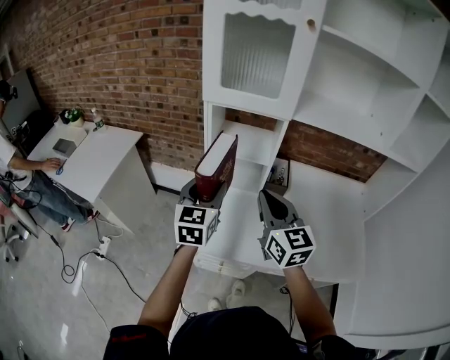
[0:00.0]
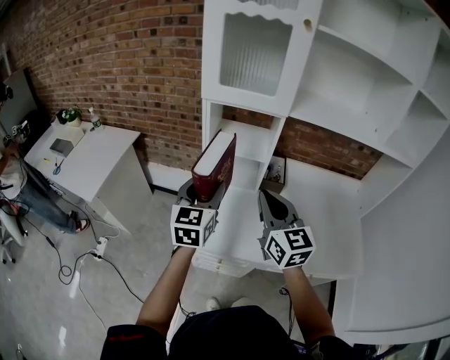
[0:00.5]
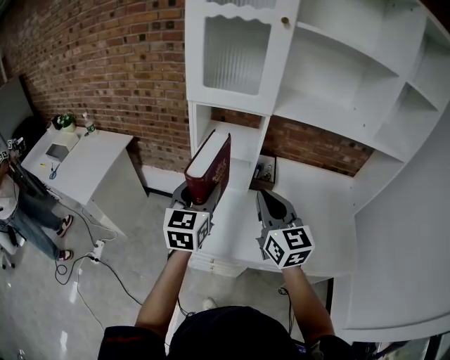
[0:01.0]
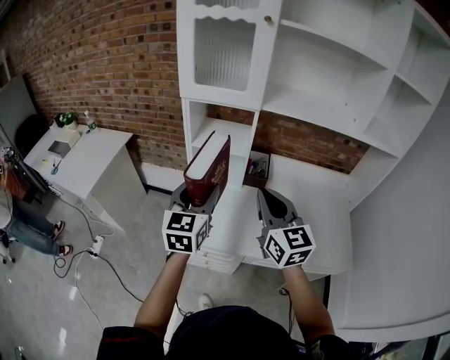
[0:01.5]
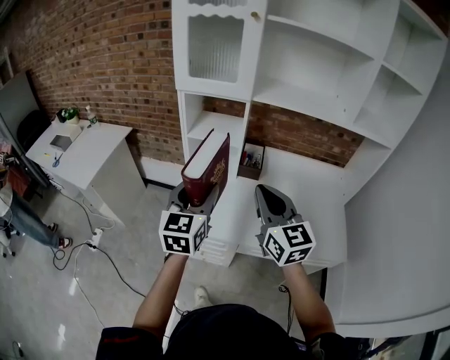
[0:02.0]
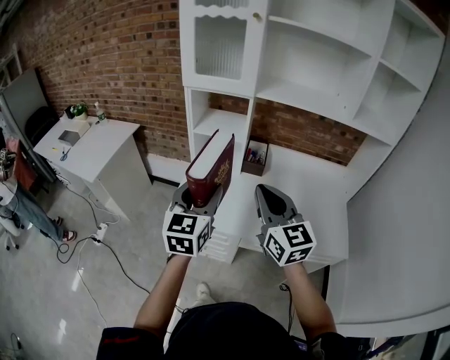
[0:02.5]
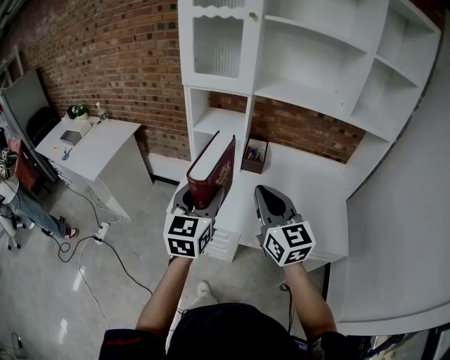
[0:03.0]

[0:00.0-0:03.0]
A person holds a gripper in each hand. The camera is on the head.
0:00.0 to 0:01.5: The right gripper shifts about 10 cm to the right and backward, while the left gripper travels backward and to the right by roughly 10 cm.
0:01.5 to 0:03.0: The grippers both shift backward by some 10 cm.

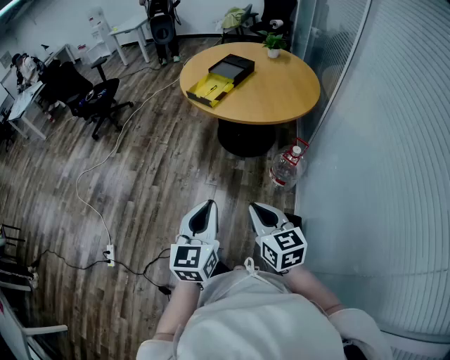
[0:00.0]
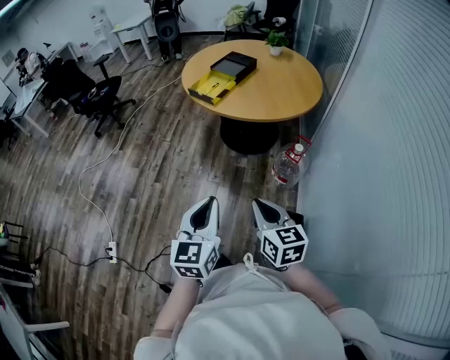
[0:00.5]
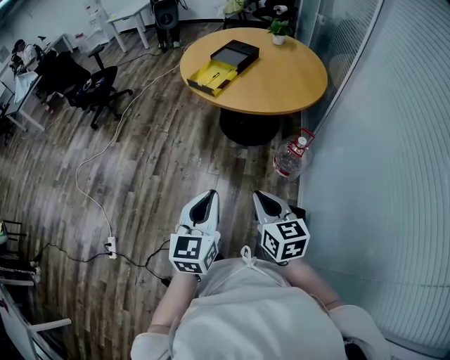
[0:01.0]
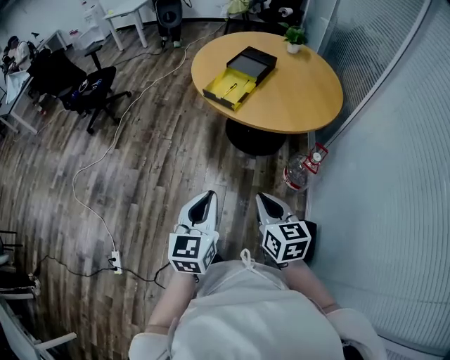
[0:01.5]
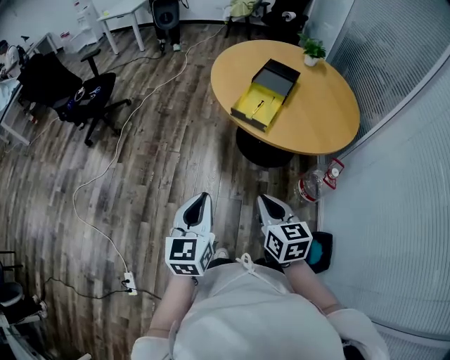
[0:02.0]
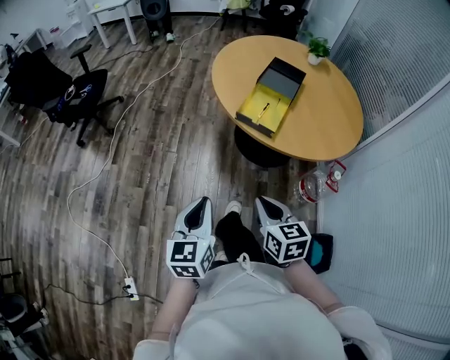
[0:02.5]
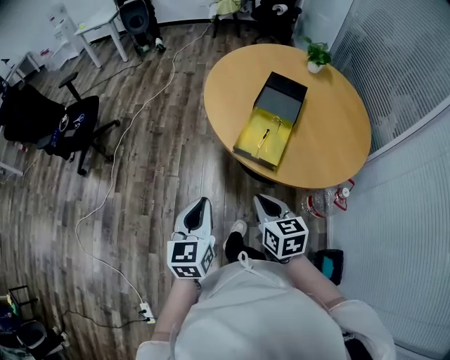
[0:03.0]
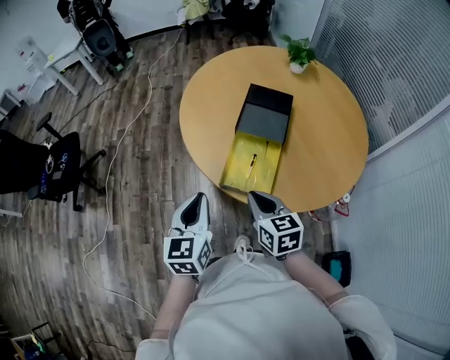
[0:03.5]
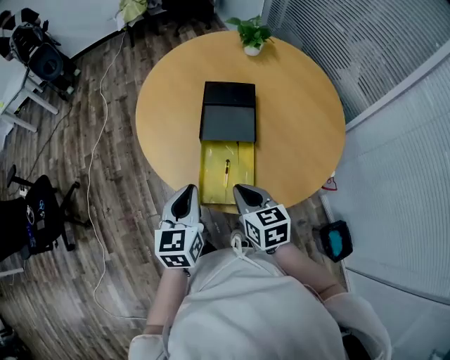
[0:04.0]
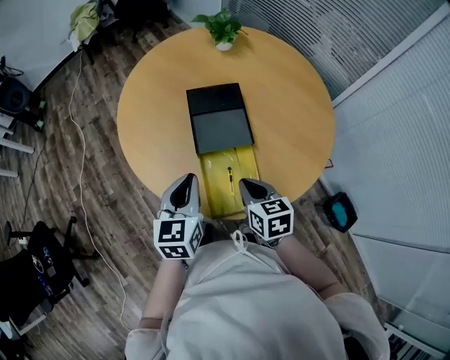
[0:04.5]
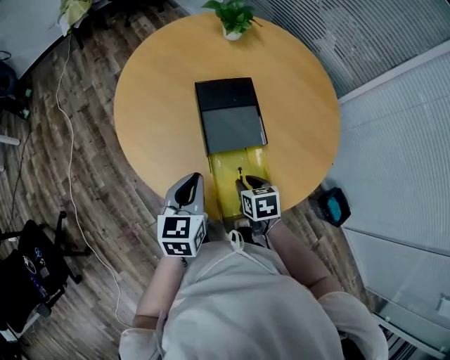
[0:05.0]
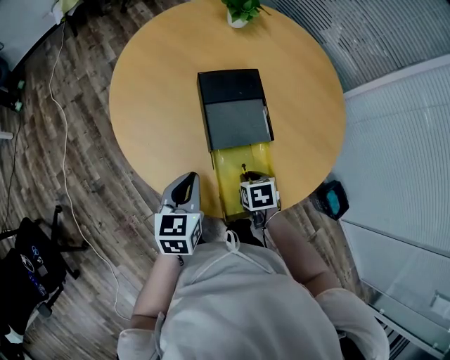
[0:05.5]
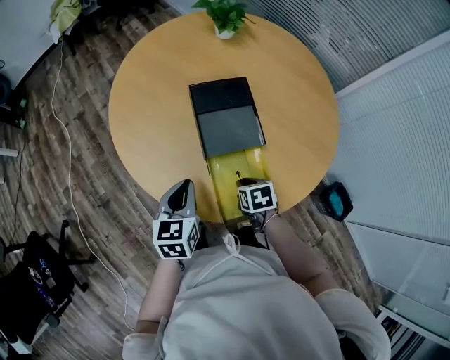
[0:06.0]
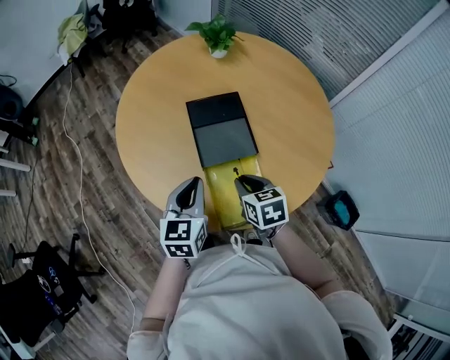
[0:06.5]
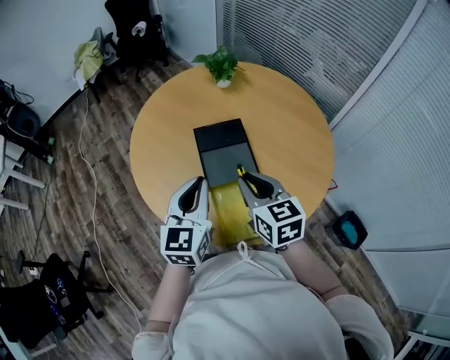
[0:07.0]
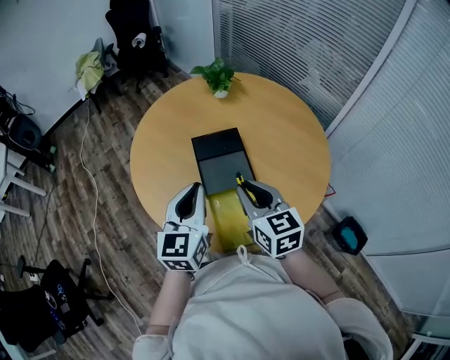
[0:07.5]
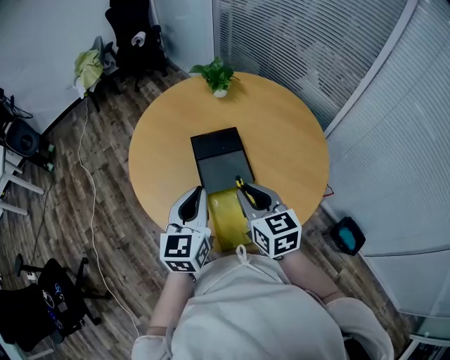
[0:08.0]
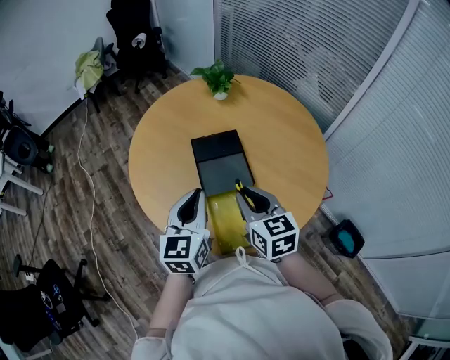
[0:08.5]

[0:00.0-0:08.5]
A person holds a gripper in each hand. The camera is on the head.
0:00.0 to 0:02.0: Both grippers are carried forward and to the left, some 40 cm.
0:02.0 to 0:04.0: The pair of grippers is taken forward, approximately 50 cm. The right gripper swivels approximately 20 degrees. The left gripper rotates roughly 30 degrees.
0:04.0 to 0:06.5: The grippers both shift forward by about 15 cm. The left gripper swivels some 20 degrees. The right gripper reaches some 15 cm downward, then returns, and turns by approximately 20 degrees.
0:06.5 to 0:08.5: Both grippers travel together upward, about 15 cm. The right gripper swivels roughly 30 degrees.

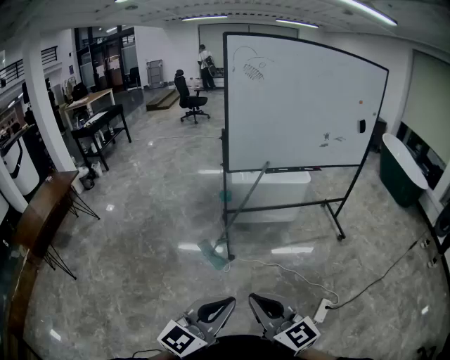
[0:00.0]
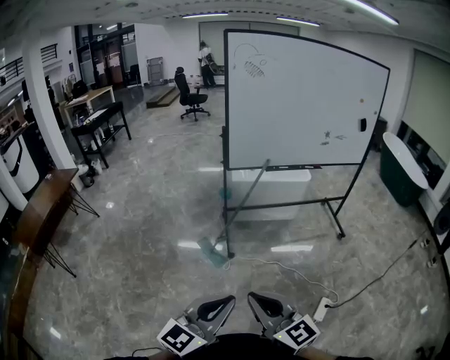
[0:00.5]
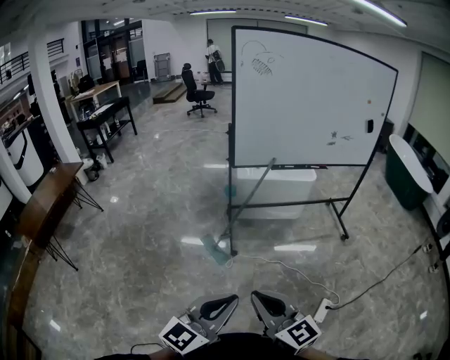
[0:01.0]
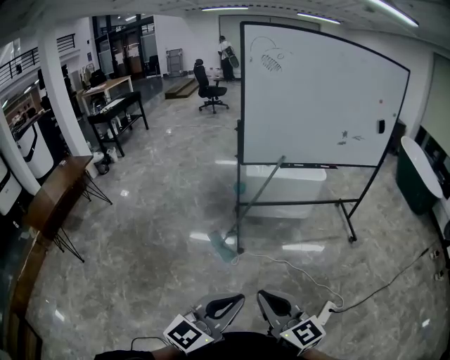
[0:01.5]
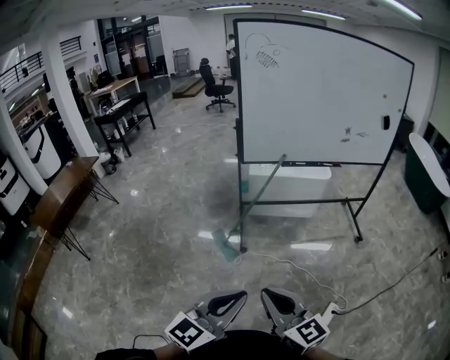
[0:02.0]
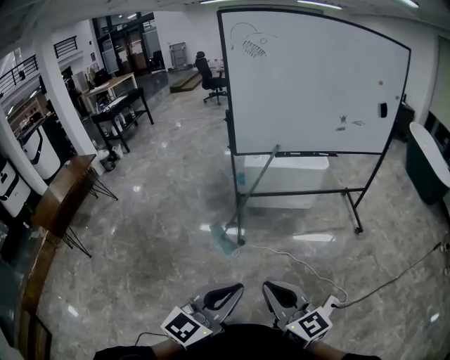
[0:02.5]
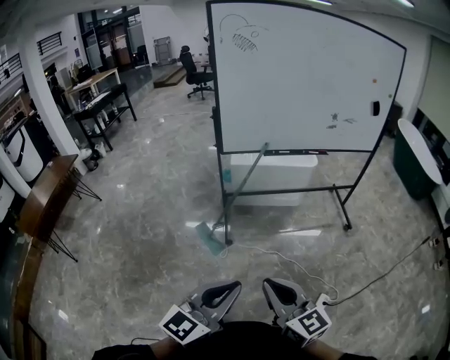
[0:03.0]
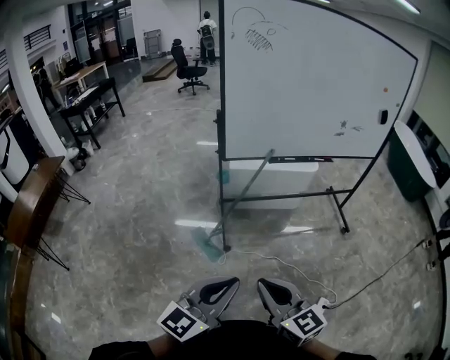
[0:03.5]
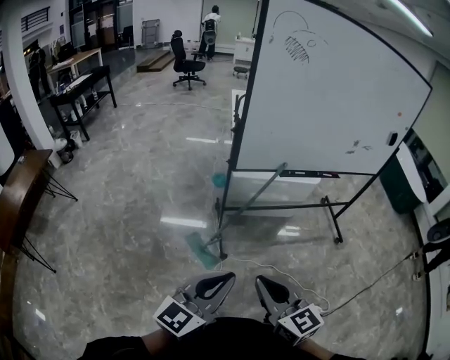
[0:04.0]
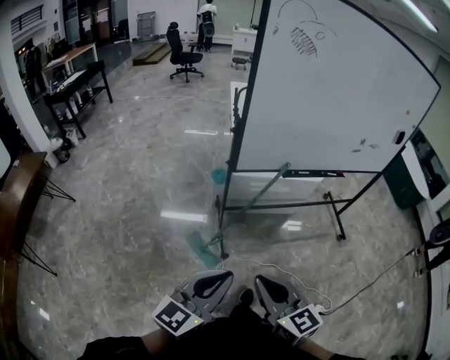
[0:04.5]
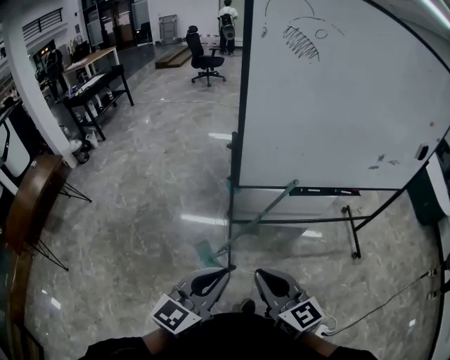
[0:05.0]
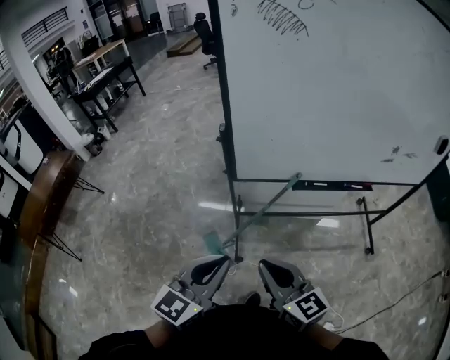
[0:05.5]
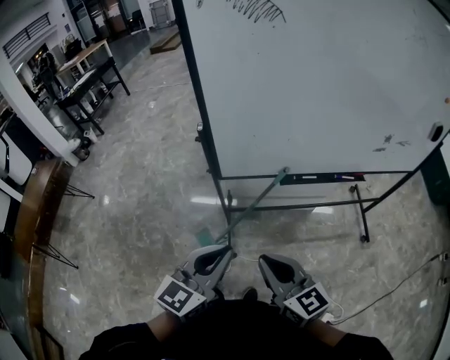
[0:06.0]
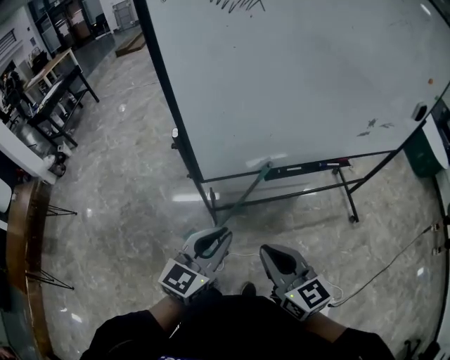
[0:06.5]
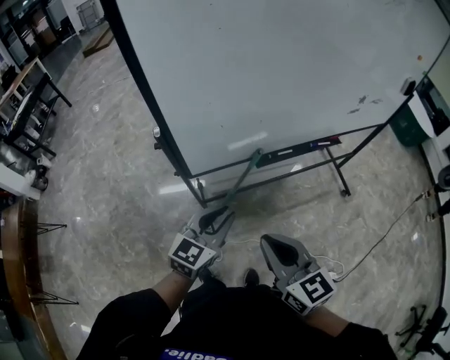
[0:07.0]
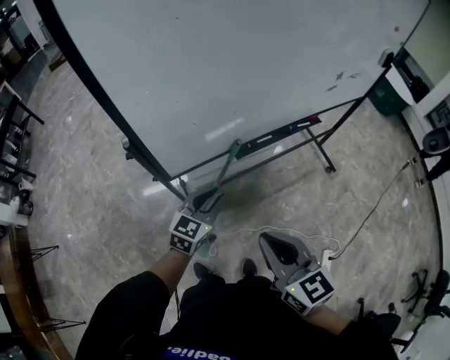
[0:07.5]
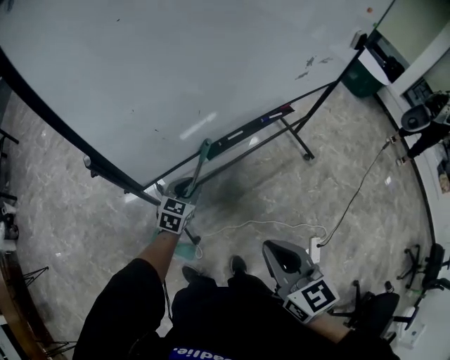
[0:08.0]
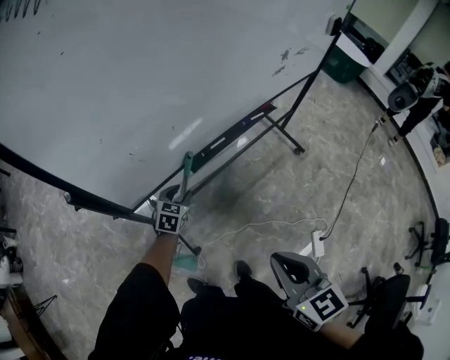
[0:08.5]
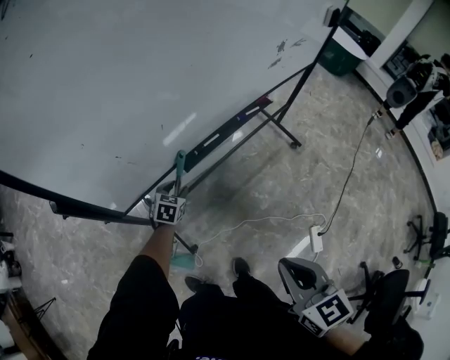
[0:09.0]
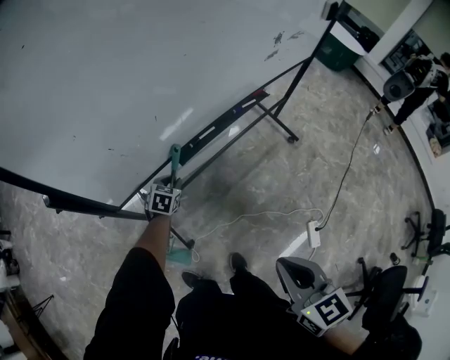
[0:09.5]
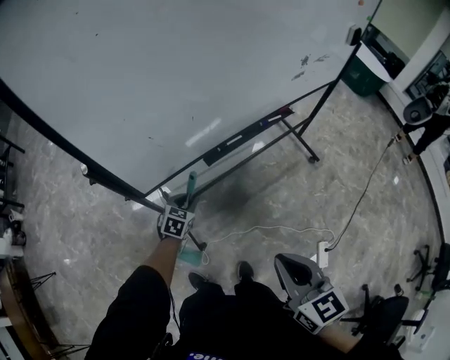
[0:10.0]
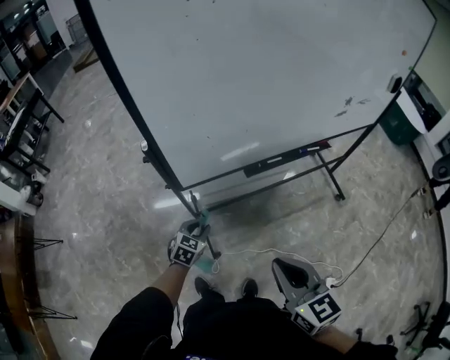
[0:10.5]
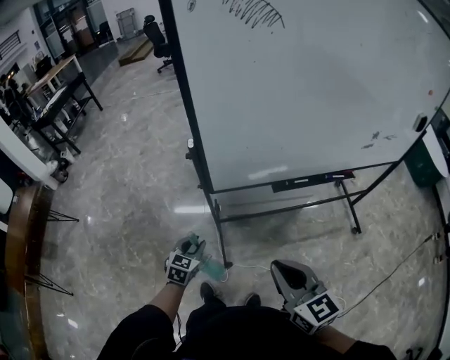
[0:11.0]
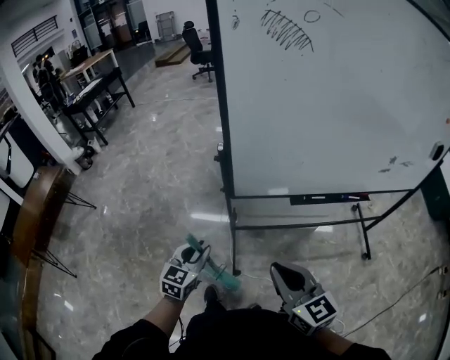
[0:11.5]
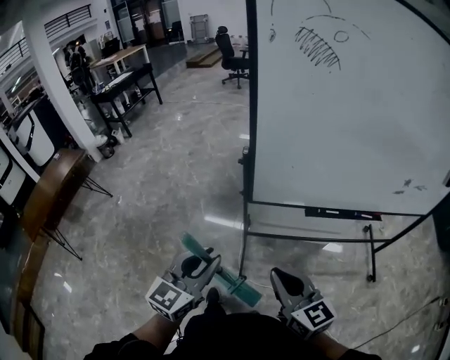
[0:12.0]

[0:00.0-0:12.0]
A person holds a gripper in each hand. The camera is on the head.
0:00.0 to 0:02.0: Both grippers travel together to the right, about 10 cm.
0:02.0 to 0:04.0: Both grippers move forward and to the left, approximately 30 cm.
0:04.0 to 0:06.0: Both grippers travel together forward and to the right, about 30 cm.
0:06.0 to 0:08.0: The left gripper heads downward, covering roughly 25 cm, changes its angle by roughly 30 degrees, and opens its fingers; the right gripper ends up roughly 10 cm from where it was, and swivels about 40 degrees.
0:08.0 to 0:10.0: The left gripper moves downward, approximately 5 cm.
0:10.0 to 0:12.0: The left gripper heads upward, covering roughly 35 cm, and points its fingers some 40 degrees further upward. The right gripper changes place by about 15 cm, and swivels approximately 50 degrees.

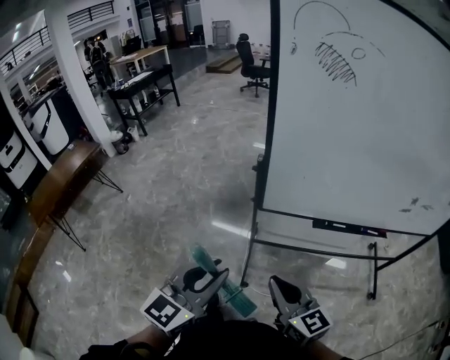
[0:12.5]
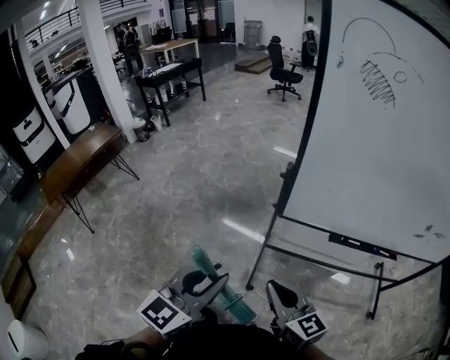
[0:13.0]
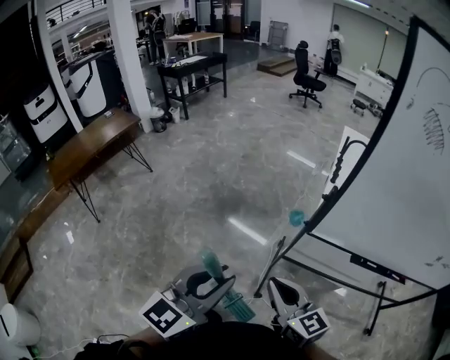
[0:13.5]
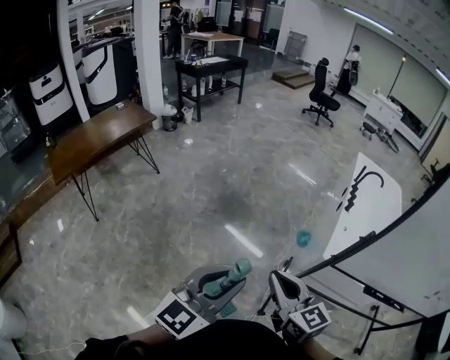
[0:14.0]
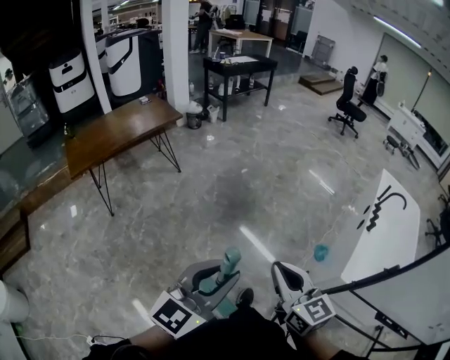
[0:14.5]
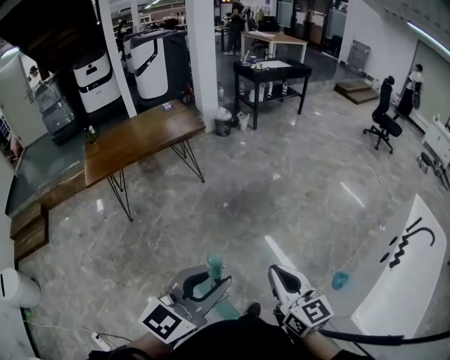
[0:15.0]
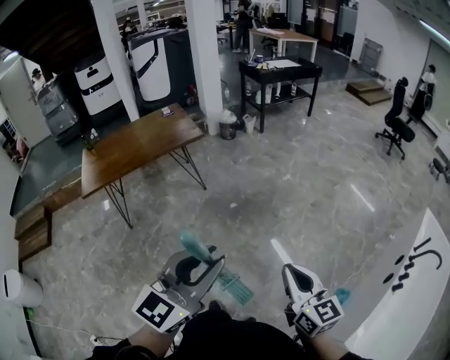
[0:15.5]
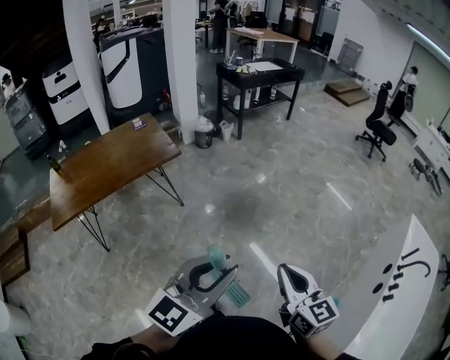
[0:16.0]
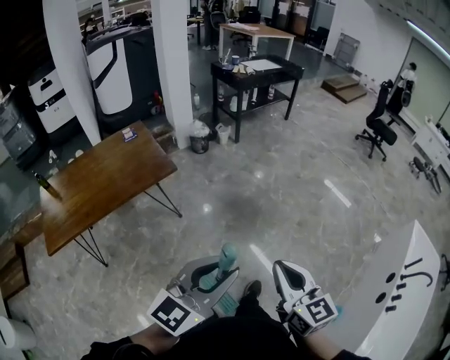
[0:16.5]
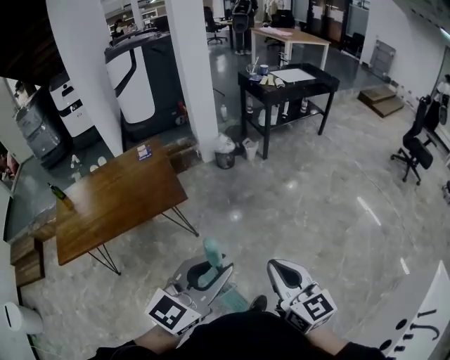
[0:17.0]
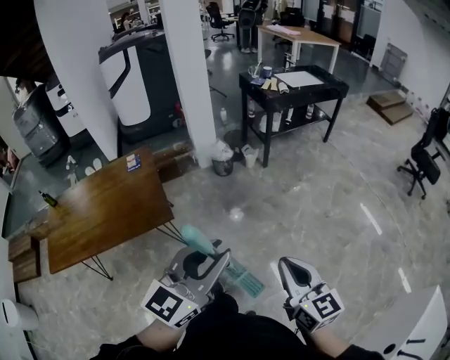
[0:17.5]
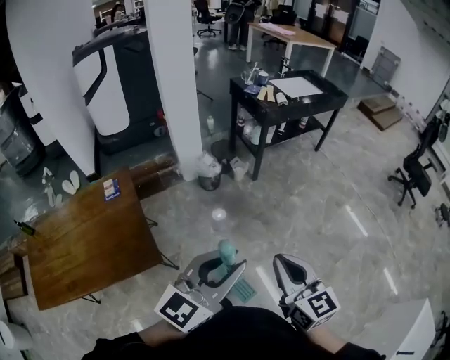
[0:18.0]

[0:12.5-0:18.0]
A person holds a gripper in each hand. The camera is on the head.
0:12.5 to 0:14.5: The two grippers travel together, to the left and forward, about 50 cm. The left gripper swivels about 20 degrees, while the right gripper changes its angle by about 20 degrees.
0:14.5 to 0:16.0: Both grippers are carried forward, roughly 50 cm.
0:16.0 to 0:18.0: The two grippers travel together, forward, approximately 70 cm.
